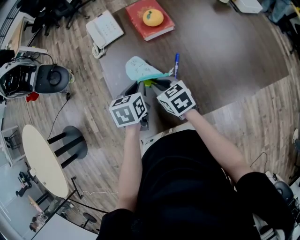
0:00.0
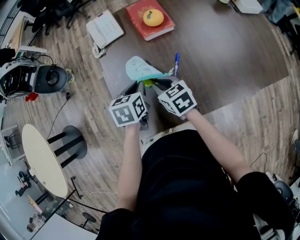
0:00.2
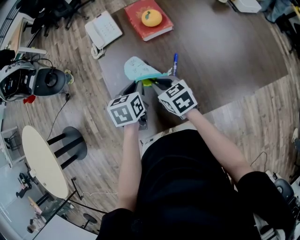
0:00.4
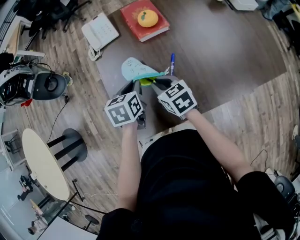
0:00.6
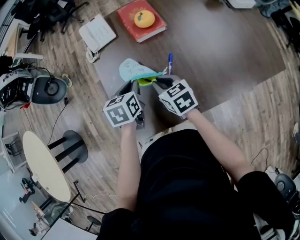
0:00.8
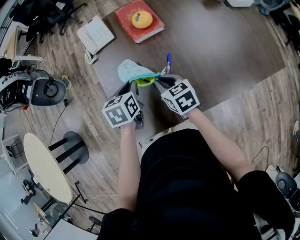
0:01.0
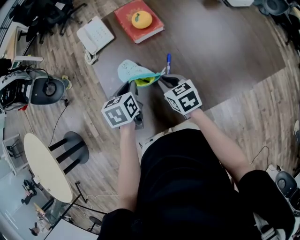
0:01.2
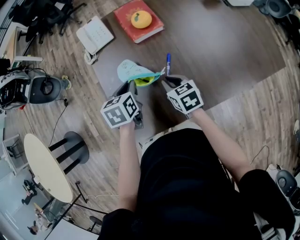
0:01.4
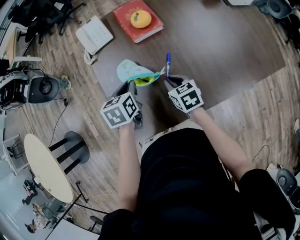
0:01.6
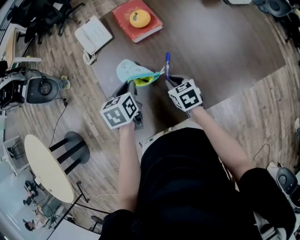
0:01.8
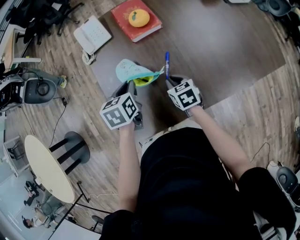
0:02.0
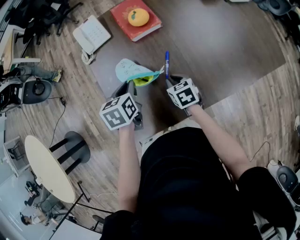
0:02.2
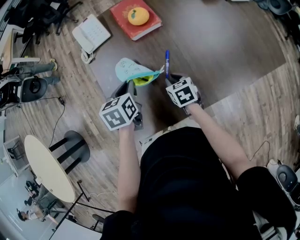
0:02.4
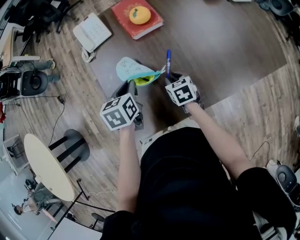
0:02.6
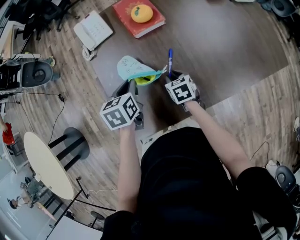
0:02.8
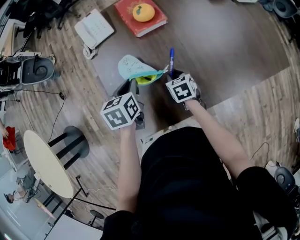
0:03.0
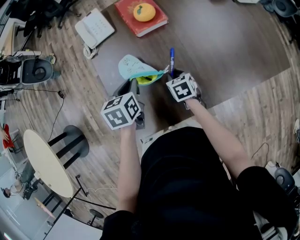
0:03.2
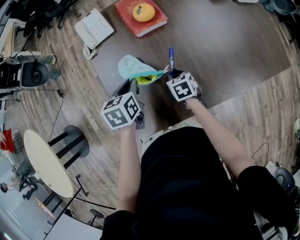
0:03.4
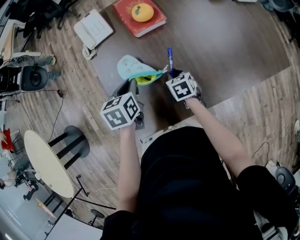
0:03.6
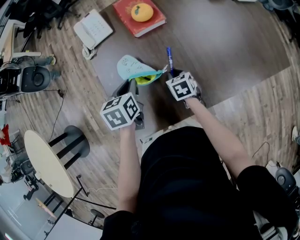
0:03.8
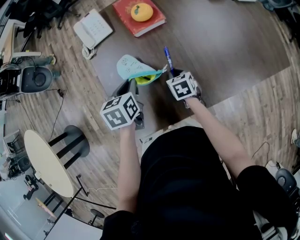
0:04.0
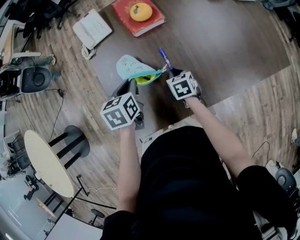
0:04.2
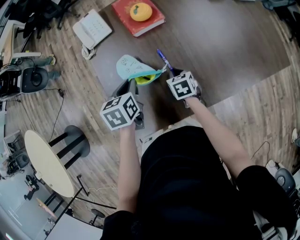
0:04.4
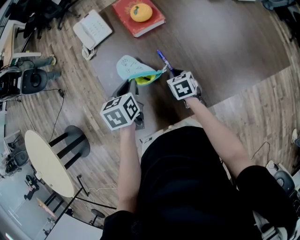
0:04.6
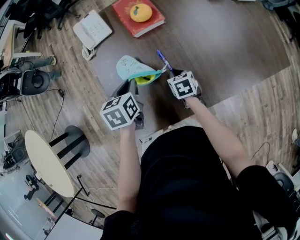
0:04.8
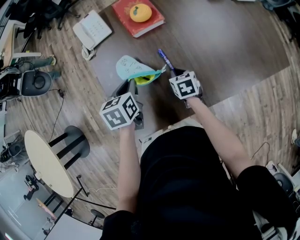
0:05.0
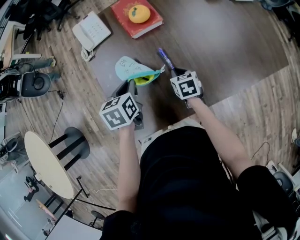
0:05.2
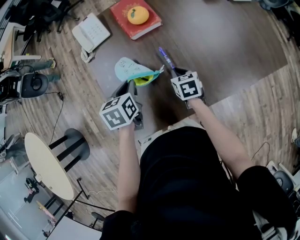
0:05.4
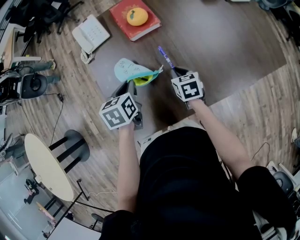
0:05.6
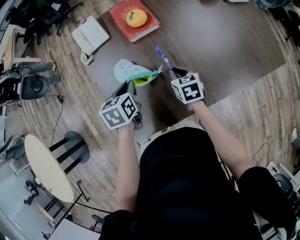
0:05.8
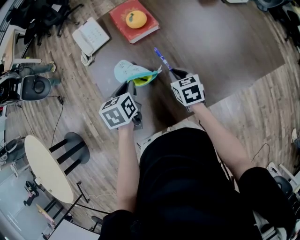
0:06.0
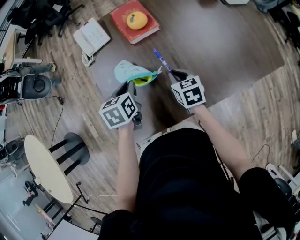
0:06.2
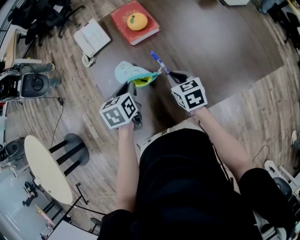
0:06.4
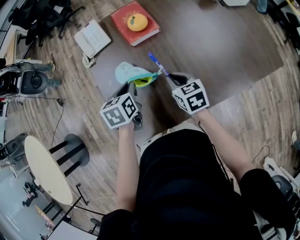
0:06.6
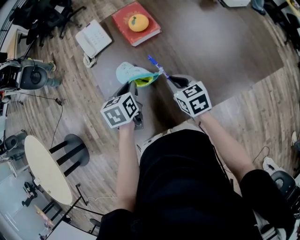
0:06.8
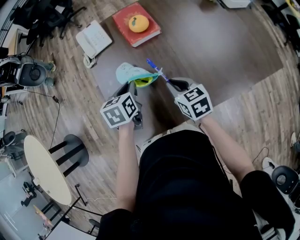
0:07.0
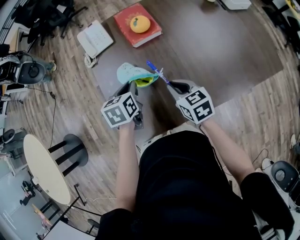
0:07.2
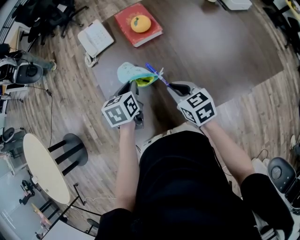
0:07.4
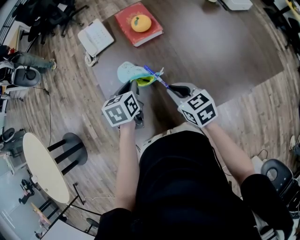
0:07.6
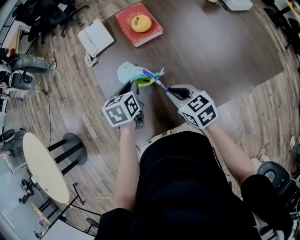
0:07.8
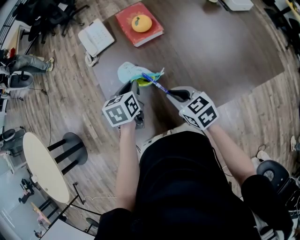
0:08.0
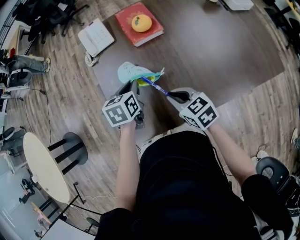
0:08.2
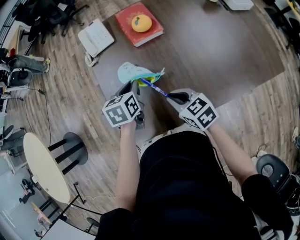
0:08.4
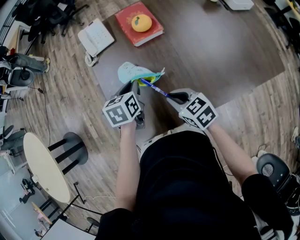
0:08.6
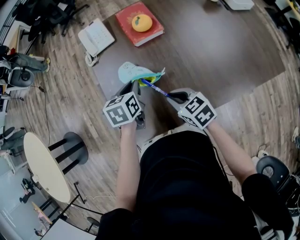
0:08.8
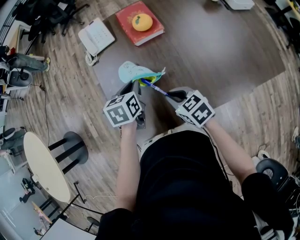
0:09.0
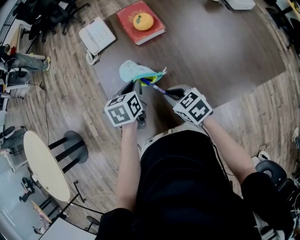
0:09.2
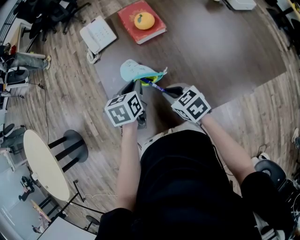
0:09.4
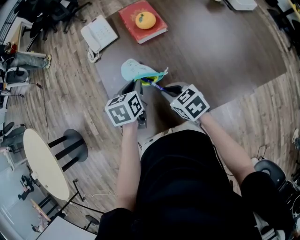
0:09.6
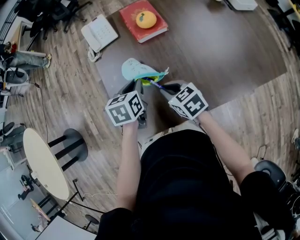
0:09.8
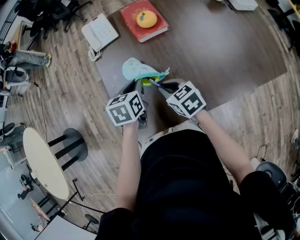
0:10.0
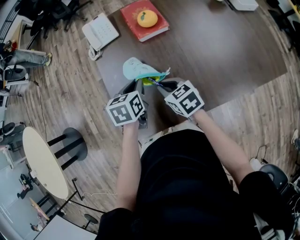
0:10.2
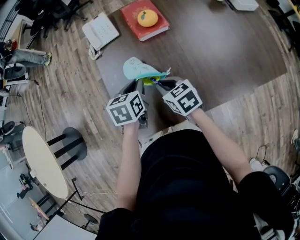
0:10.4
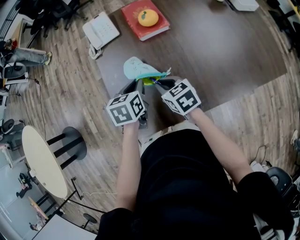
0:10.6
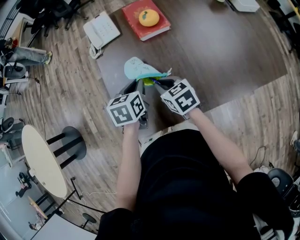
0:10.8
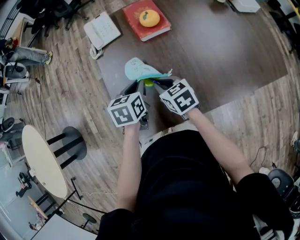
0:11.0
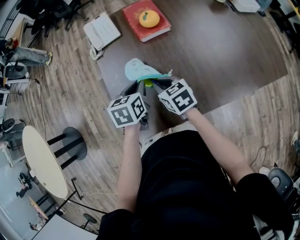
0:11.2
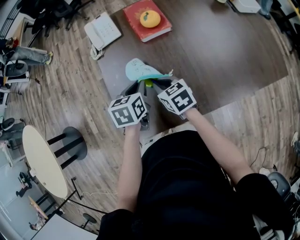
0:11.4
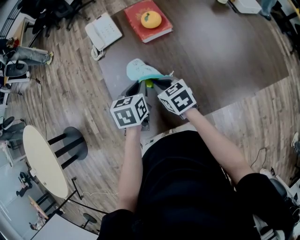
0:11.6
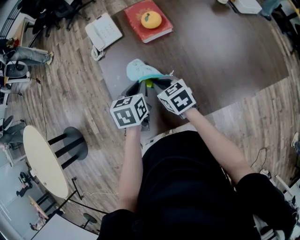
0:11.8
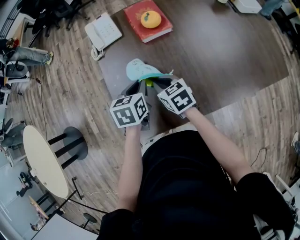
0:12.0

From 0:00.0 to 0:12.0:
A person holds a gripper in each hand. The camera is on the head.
From 0:00.0 to 0:01.6: The right gripper travels to the right by roughly 10 cm.
From 0:01.6 to 0:03.0: The right gripper travels downward by approximately 10 cm.
From 0:03.0 to 0:04.4: The grippers move only a little.
From 0:04.4 to 0:06.0: The right gripper shifts about 10 cm upward.
From 0:06.0 to 0:07.6: The right gripper heads upward and backward, covering some 10 cm.
From 0:07.6 to 0:09.0: The grippers make only small movements.
From 0:09.0 to 0:10.4: The right gripper shifts roughly 5 cm forward.
From 0:10.4 to 0:12.0: There are only small adjustments of the grippers.

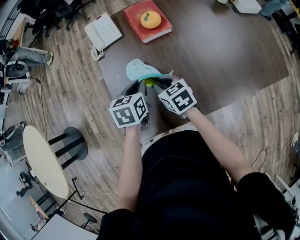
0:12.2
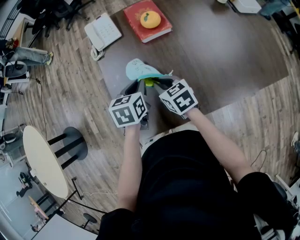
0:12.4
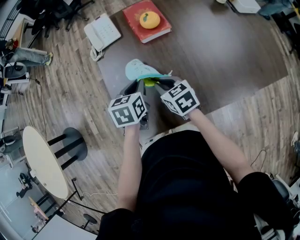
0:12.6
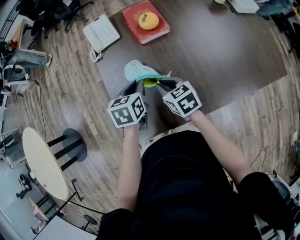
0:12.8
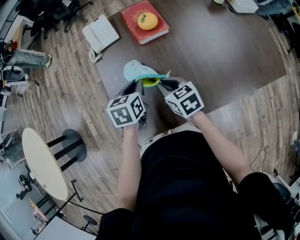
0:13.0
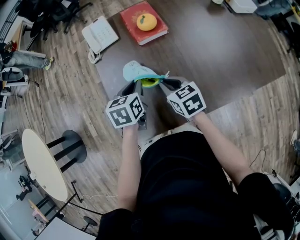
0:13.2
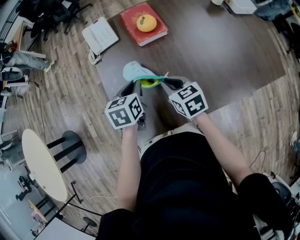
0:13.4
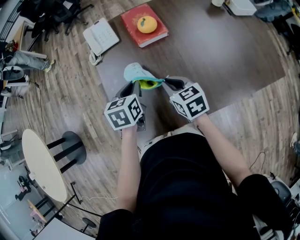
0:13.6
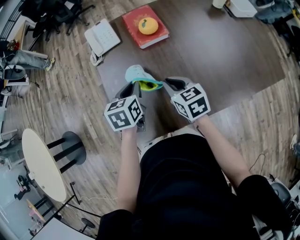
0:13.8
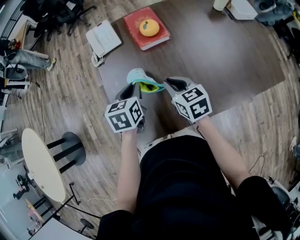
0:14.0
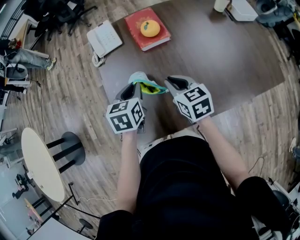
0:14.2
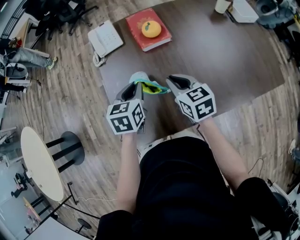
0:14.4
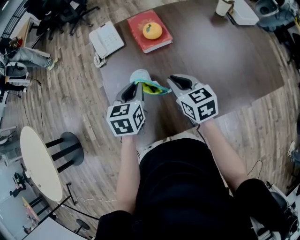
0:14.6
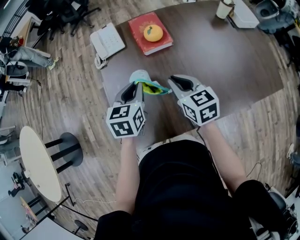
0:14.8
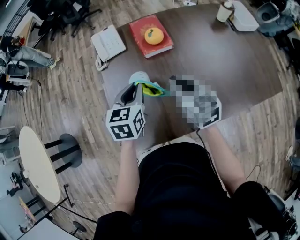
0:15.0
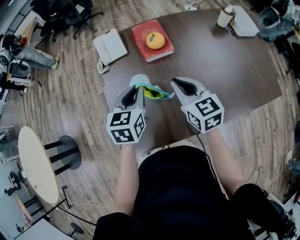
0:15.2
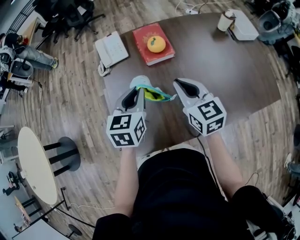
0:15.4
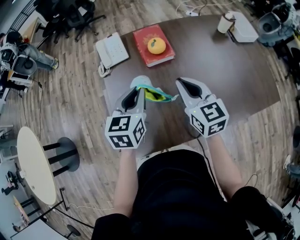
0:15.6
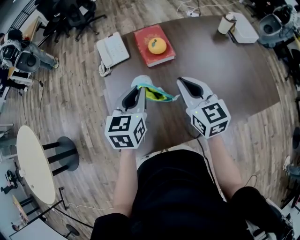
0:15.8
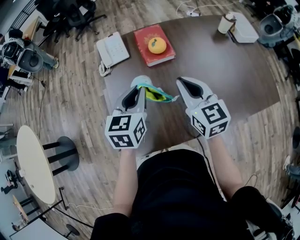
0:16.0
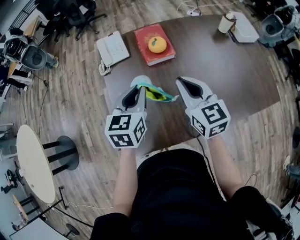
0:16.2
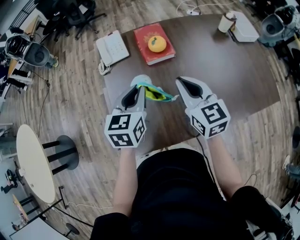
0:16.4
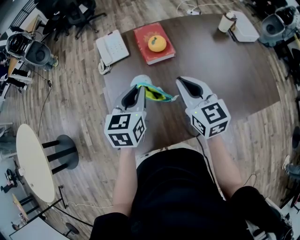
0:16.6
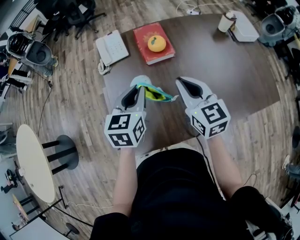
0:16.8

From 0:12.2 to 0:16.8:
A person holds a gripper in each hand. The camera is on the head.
From 0:12.2 to 0:13.8: The right gripper goes some 5 cm to the right.
From 0:13.8 to 0:15.2: Both grippers travel together upward, approximately 10 cm.
From 0:15.2 to 0:16.8: There are only small adjustments of the grippers.

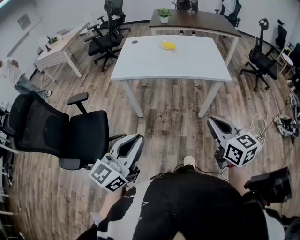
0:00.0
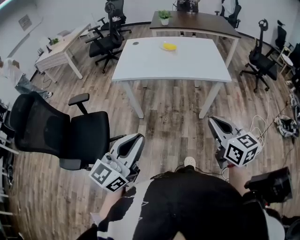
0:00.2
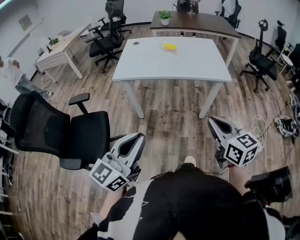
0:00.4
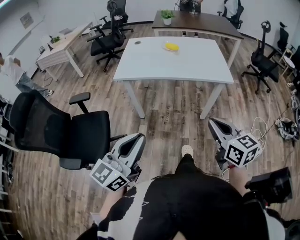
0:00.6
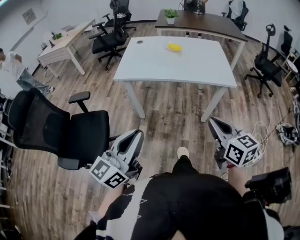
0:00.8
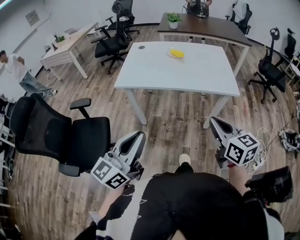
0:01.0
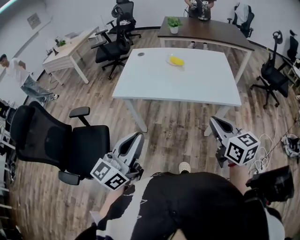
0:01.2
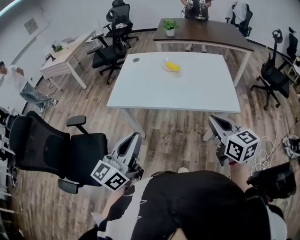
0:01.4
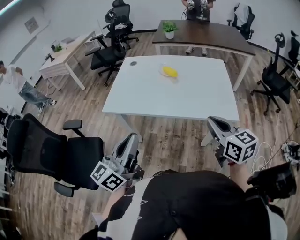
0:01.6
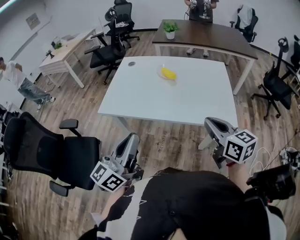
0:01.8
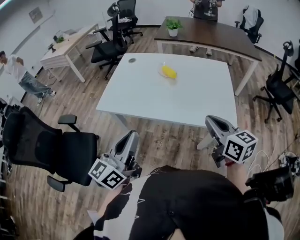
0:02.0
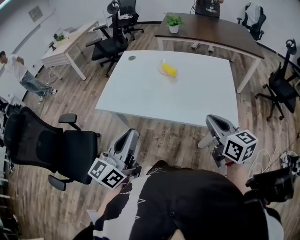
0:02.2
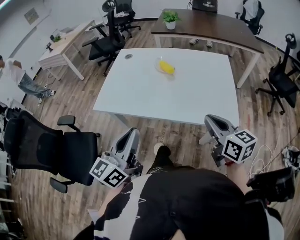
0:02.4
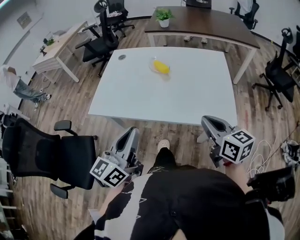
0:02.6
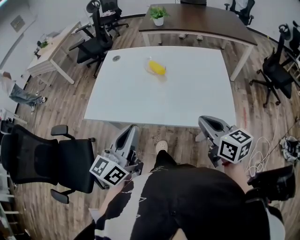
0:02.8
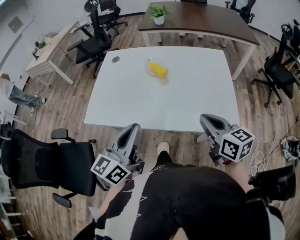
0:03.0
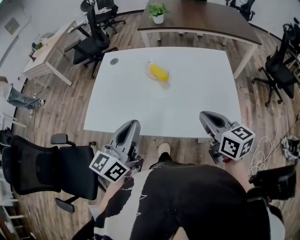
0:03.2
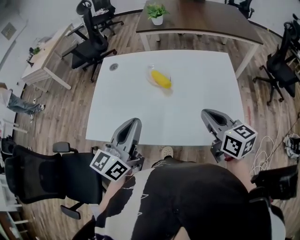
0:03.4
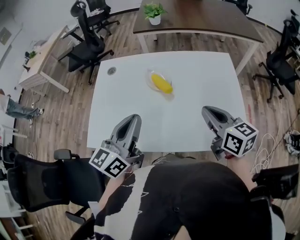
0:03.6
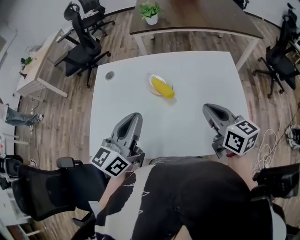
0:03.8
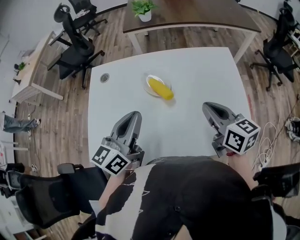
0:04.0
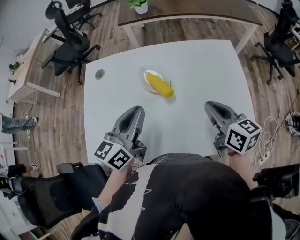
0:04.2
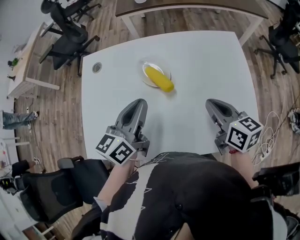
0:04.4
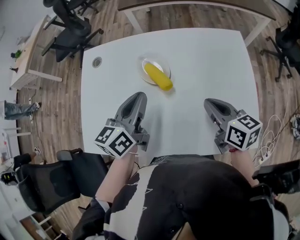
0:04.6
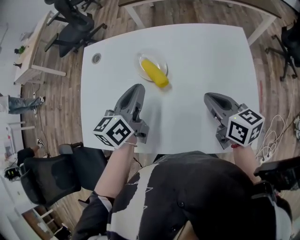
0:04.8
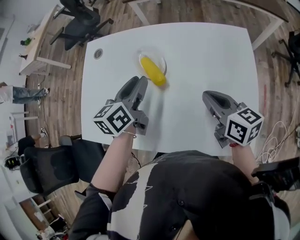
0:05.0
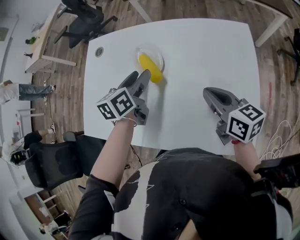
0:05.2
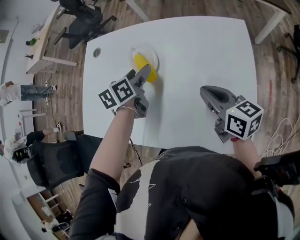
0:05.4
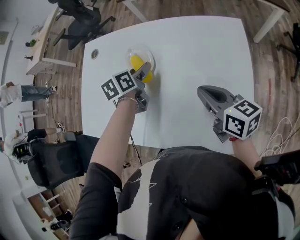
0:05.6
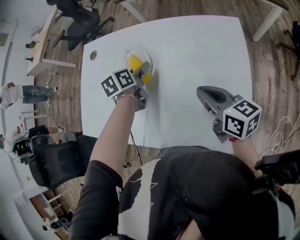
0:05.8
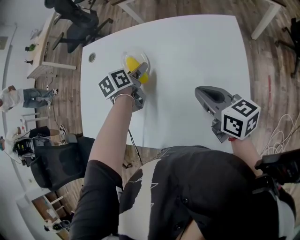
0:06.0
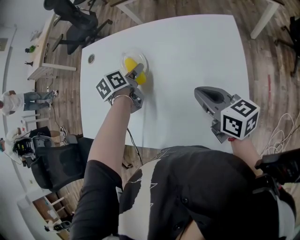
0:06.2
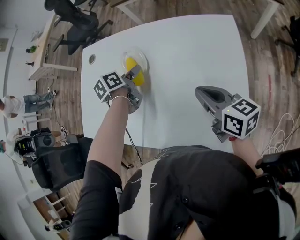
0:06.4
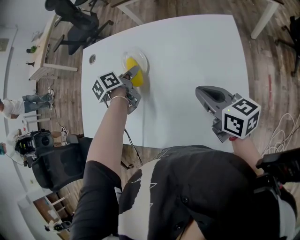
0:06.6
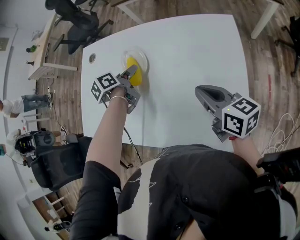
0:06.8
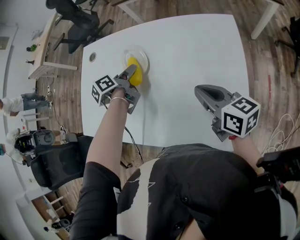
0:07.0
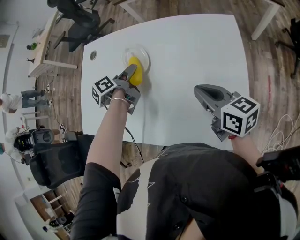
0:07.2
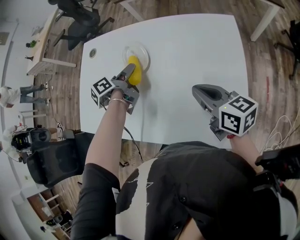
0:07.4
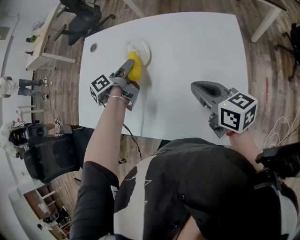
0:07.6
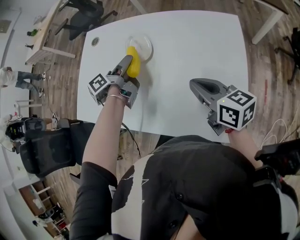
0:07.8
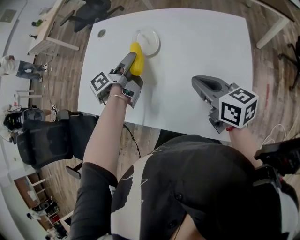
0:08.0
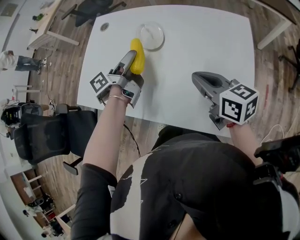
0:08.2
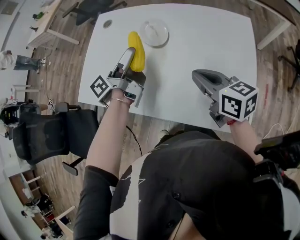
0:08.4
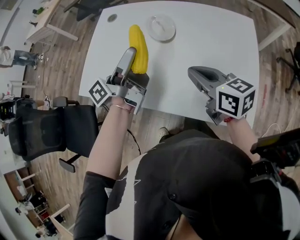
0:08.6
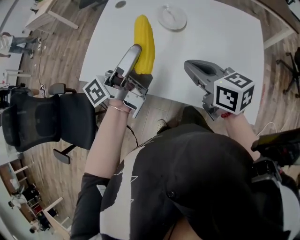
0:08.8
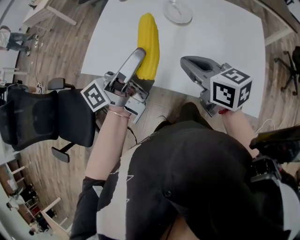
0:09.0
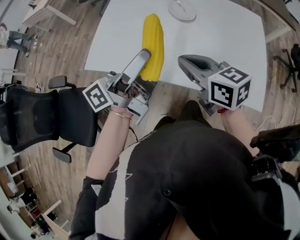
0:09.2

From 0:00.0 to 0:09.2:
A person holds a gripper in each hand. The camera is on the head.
From 0:00.0 to 0:01.6: Both grippers move forward, some 30 cm.
From 0:01.6 to 0:03.0: The left gripper moves forward and to the right, about 20 cm. The right gripper moves forward, approximately 15 cm.
From 0:03.0 to 0:04.6: Both grippers move forward, about 25 cm.
From 0:04.6 to 0:06.2: The left gripper heads downward, forward and to the right, covering approximately 15 cm, angles its fingers downward, by roughly 30 degrees, and opens. The right gripper shifts roughly 10 cm to the right.
From 0:06.2 to 0:07.6: The left gripper moves roughly 5 cm, and swivels about 40 degrees.
From 0:07.6 to 0:09.2: The left gripper is displaced backward, upward and to the left by some 35 cm, and tips its fingers upward by some 50 degrees, while the right gripper moves to the left, about 25 cm.
